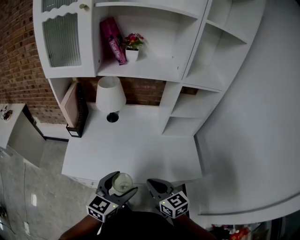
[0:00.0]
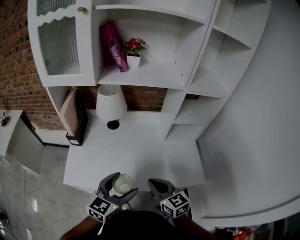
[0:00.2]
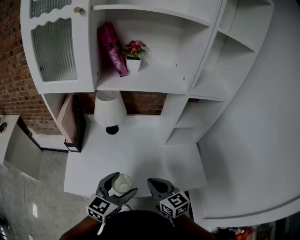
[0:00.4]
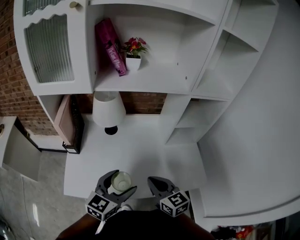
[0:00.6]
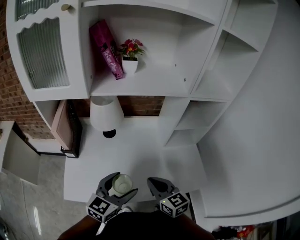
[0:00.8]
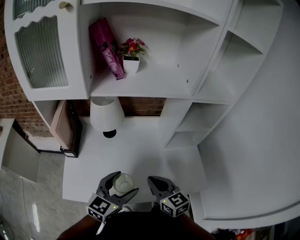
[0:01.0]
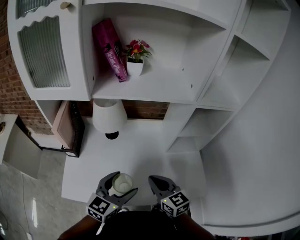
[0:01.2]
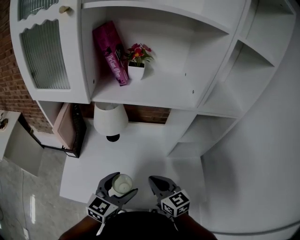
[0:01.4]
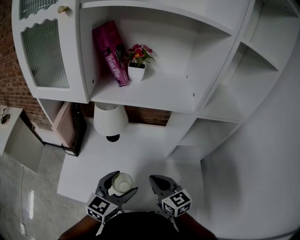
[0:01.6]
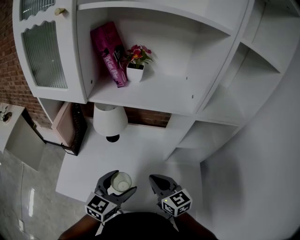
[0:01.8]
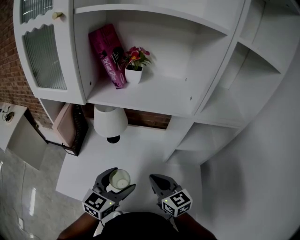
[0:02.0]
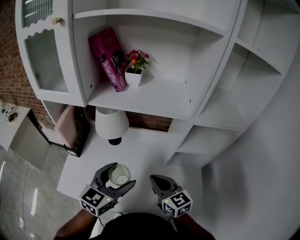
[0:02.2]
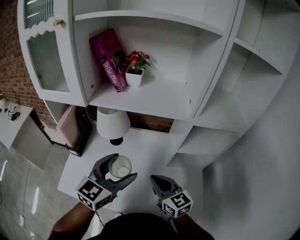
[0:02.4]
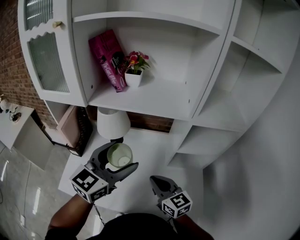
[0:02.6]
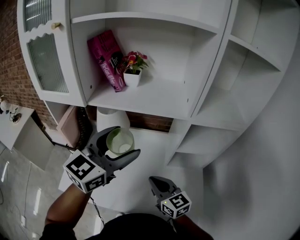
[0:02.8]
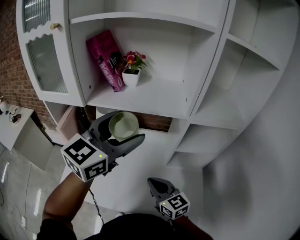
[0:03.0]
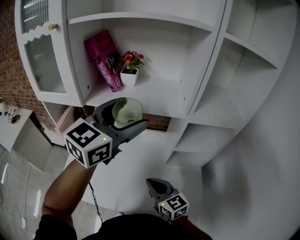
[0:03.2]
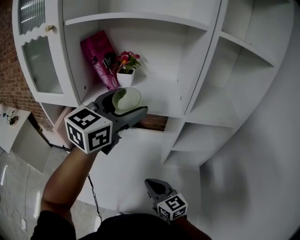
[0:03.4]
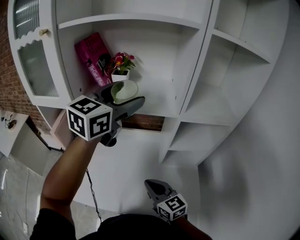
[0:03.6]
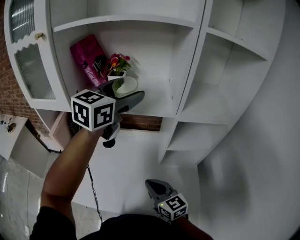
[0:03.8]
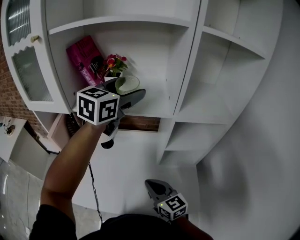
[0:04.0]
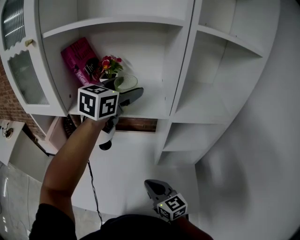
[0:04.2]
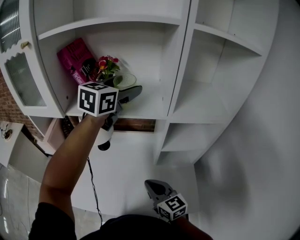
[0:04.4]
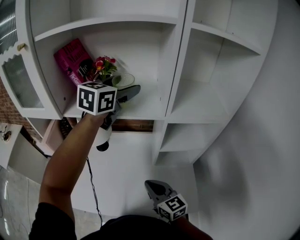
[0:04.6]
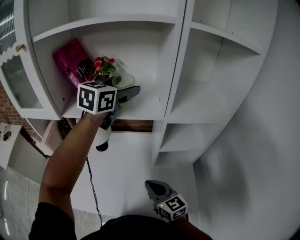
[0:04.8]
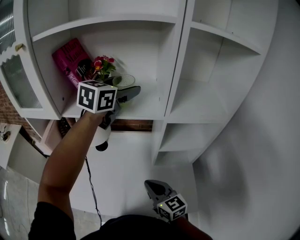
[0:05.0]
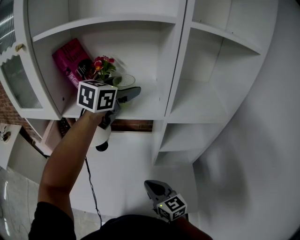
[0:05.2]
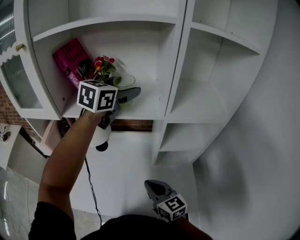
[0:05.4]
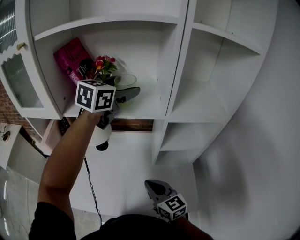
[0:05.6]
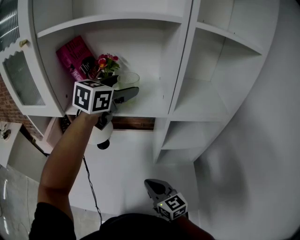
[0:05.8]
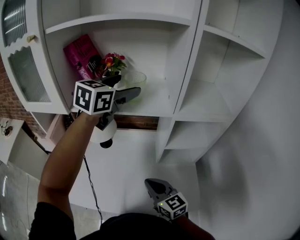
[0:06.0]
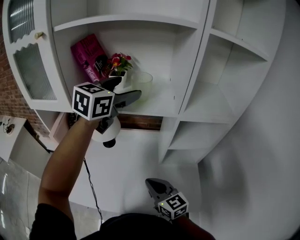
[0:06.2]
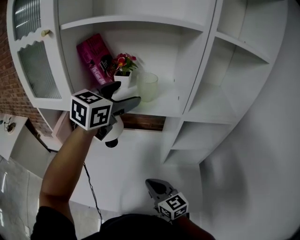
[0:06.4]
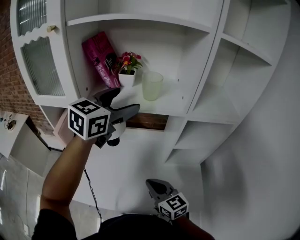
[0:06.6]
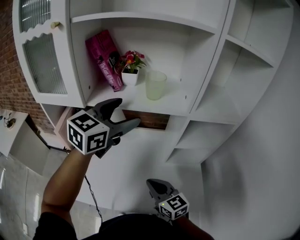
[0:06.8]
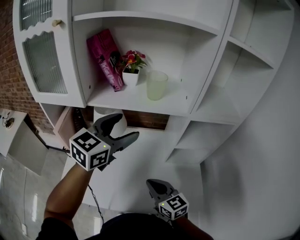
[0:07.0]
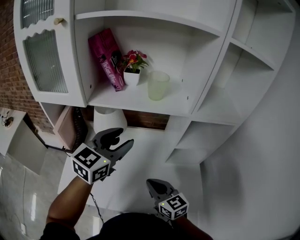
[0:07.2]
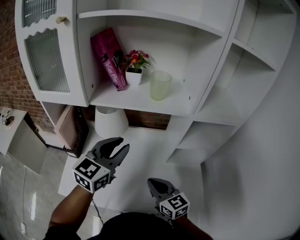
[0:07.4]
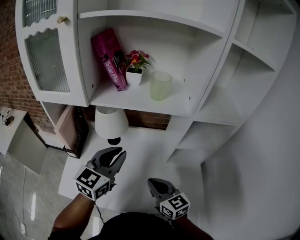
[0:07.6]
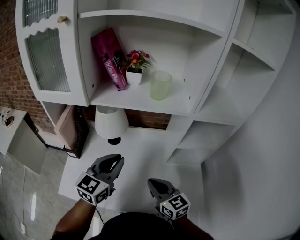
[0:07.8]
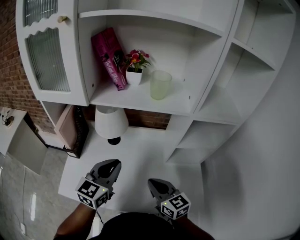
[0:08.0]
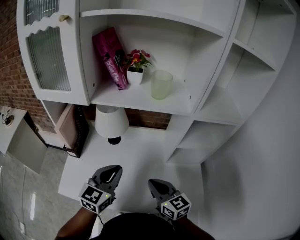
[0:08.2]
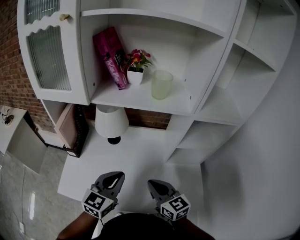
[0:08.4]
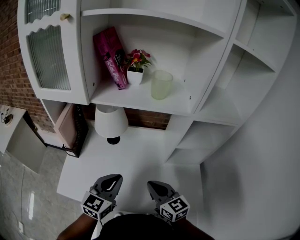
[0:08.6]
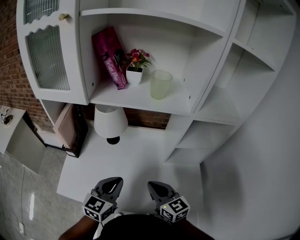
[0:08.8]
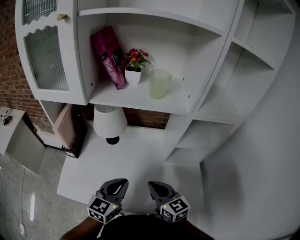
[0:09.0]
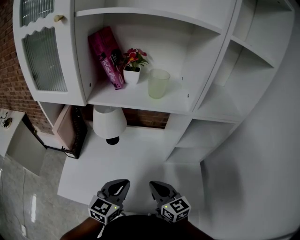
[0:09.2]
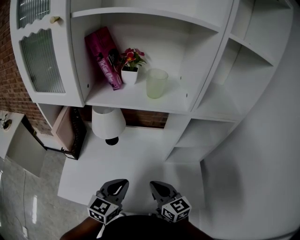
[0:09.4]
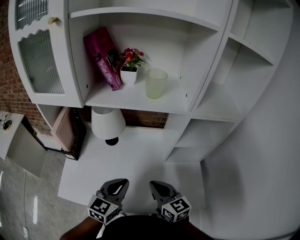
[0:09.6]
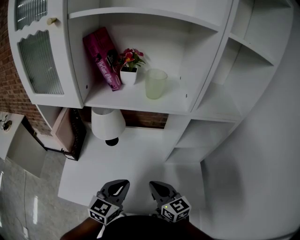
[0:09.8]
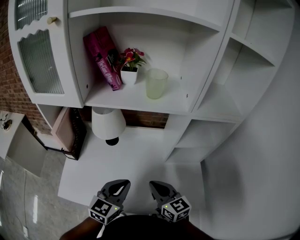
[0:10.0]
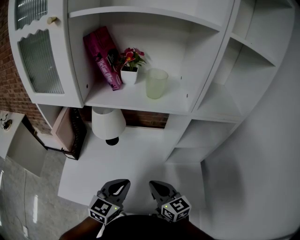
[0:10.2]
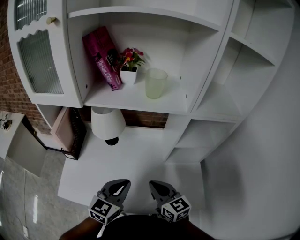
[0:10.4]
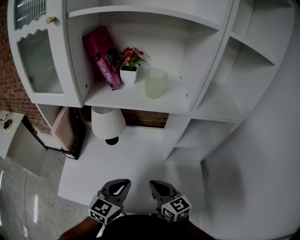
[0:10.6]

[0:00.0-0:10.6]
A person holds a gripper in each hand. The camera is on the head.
0:00.0 to 0:01.6: Both grippers travel together forward, approximately 20 cm.
0:01.6 to 0:03.0: The left gripper heads upward and forward, covering about 25 cm.
0:03.0 to 0:04.6: The left gripper shifts about 20 cm forward; the right gripper goes approximately 5 cm to the right.
0:04.6 to 0:06.0: The grippers move only a little.
0:06.0 to 0:07.6: The right gripper ends up roughly 5 cm from where it was, while the left gripper is displaced backward, downward and to the left by some 25 cm, and closes up.
0:07.6 to 0:09.0: The left gripper is displaced downward and backward by approximately 15 cm.
0:09.0 to 0:10.6: The grippers stay close to where they were, moving slightly.

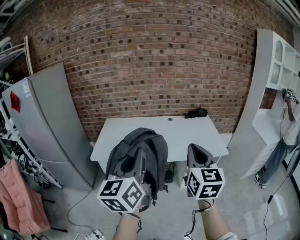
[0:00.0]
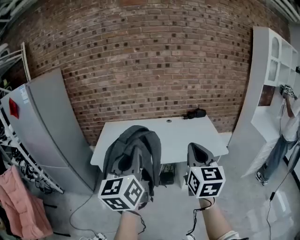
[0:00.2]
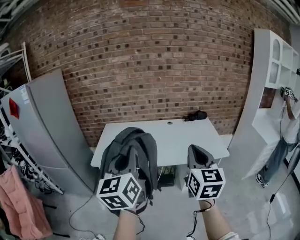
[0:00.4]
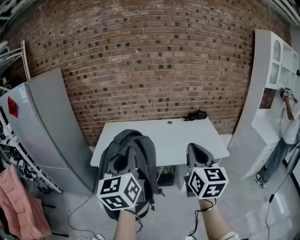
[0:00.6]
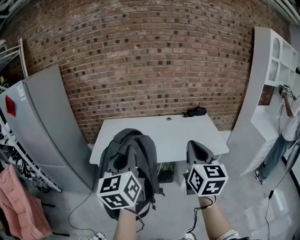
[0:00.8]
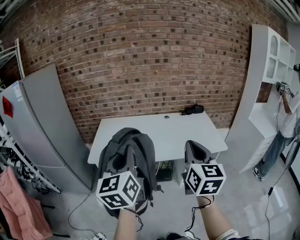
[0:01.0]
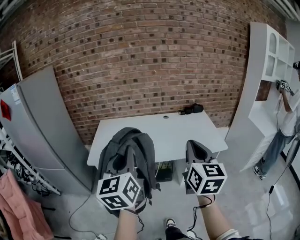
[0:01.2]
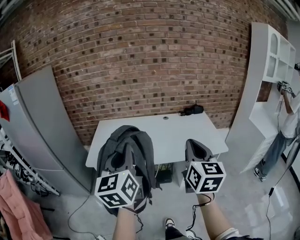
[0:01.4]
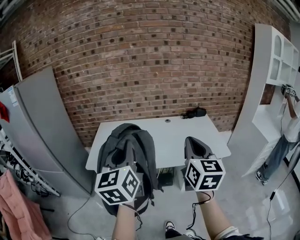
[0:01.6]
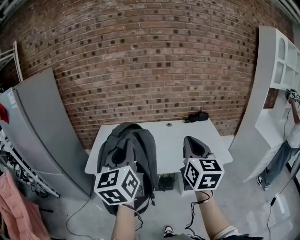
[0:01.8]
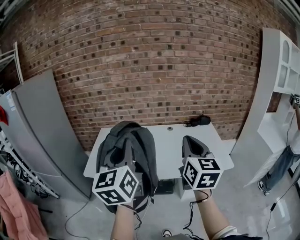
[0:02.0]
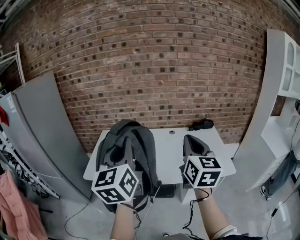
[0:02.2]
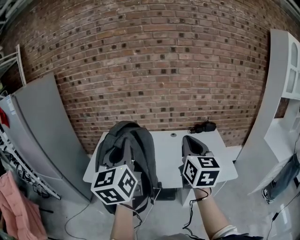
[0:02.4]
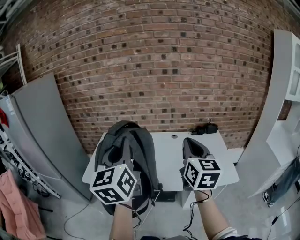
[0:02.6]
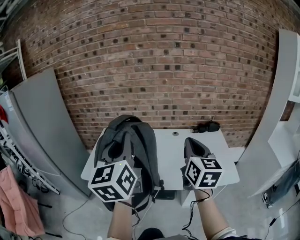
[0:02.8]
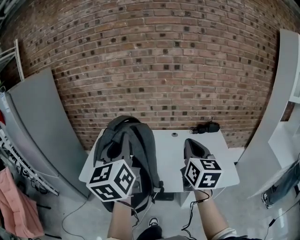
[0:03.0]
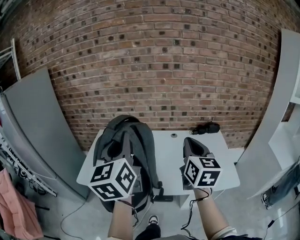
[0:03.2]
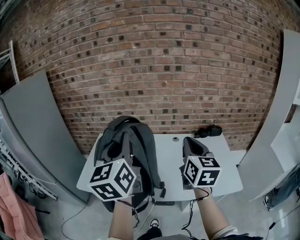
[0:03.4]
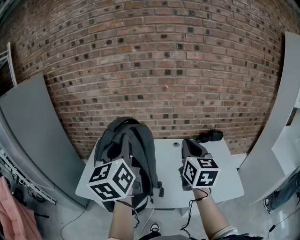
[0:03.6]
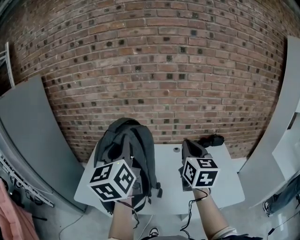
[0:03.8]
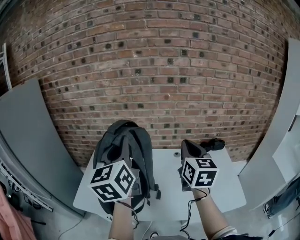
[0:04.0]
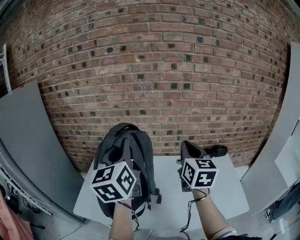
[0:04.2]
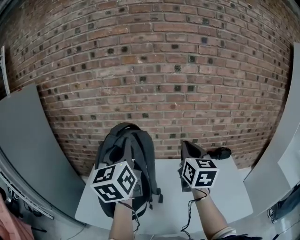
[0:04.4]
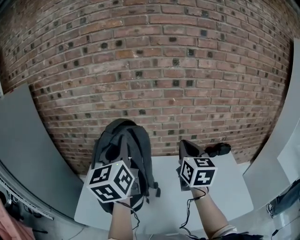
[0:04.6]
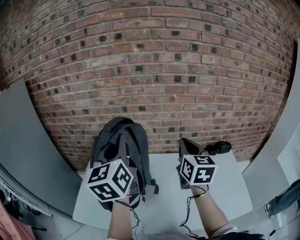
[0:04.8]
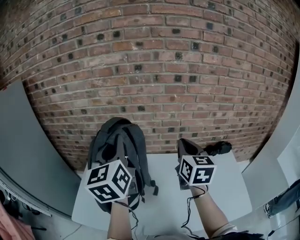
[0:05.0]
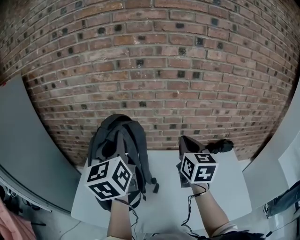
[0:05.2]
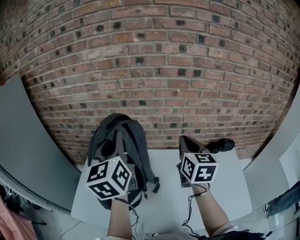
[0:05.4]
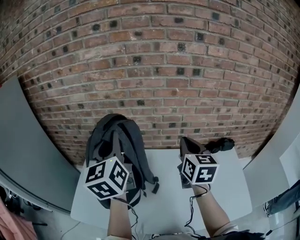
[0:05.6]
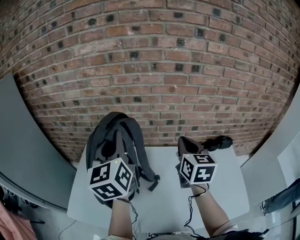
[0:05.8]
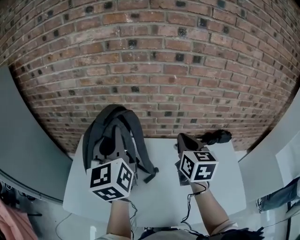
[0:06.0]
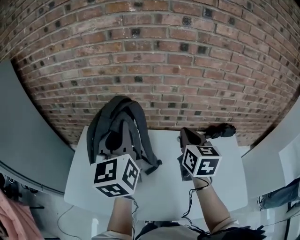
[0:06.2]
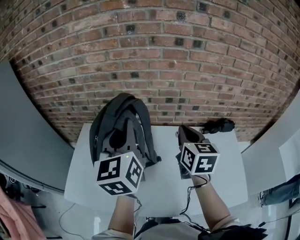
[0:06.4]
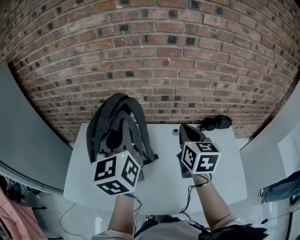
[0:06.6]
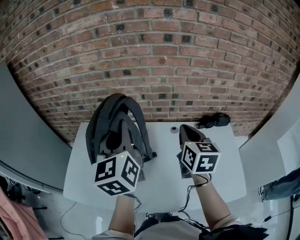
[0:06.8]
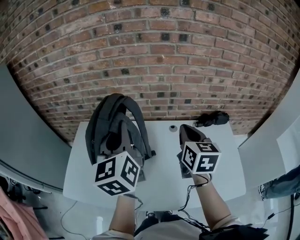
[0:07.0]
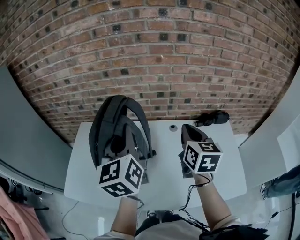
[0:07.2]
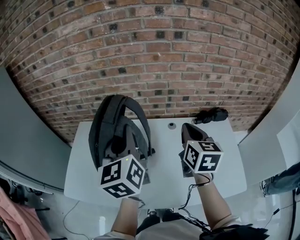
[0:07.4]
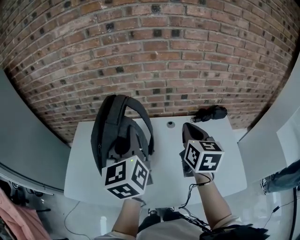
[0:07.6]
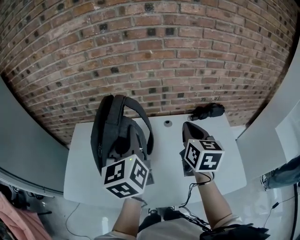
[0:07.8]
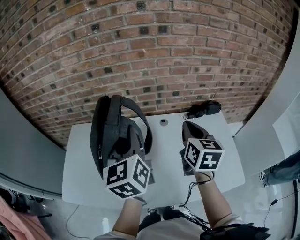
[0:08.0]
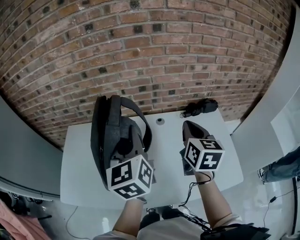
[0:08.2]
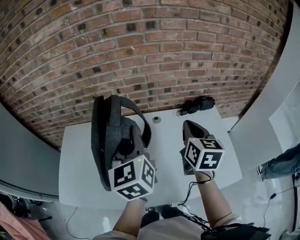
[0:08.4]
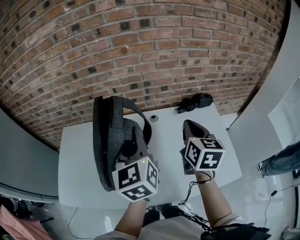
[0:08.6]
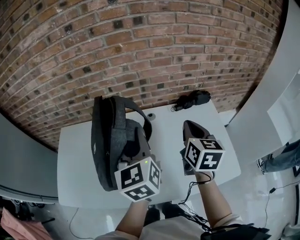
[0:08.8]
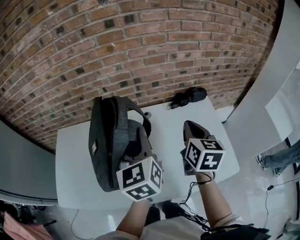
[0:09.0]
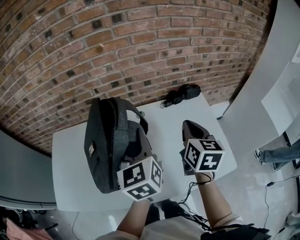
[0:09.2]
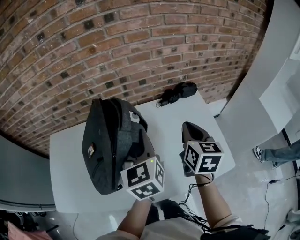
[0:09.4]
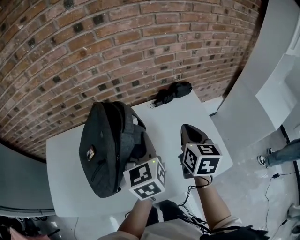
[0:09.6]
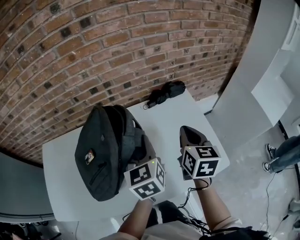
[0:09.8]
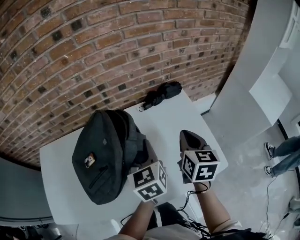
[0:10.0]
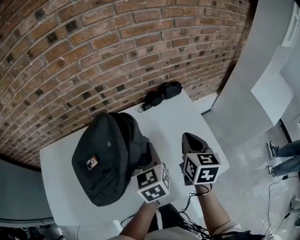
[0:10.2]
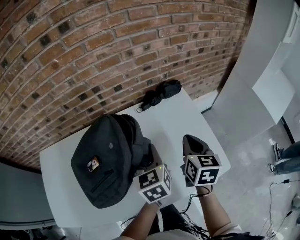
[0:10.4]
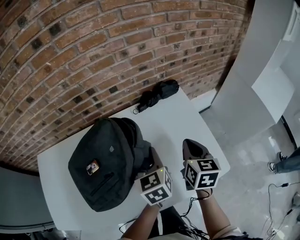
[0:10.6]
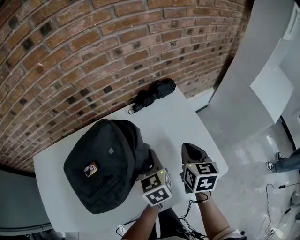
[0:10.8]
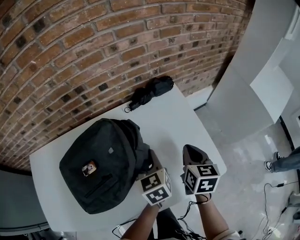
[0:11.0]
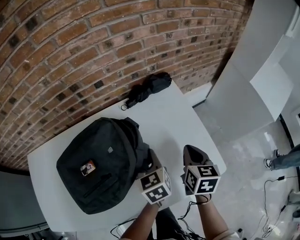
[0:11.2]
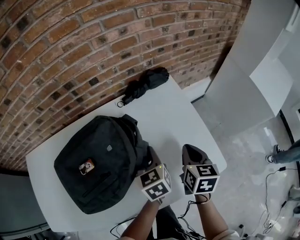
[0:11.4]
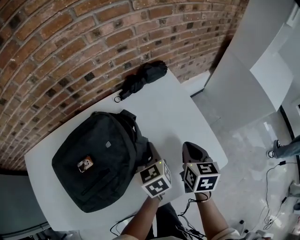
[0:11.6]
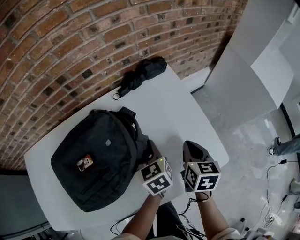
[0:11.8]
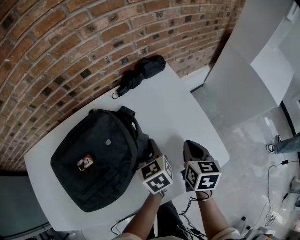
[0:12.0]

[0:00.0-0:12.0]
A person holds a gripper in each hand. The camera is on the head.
0:00.0 to 0:01.6: The grippers both shift forward by approximately 10 cm.
0:01.6 to 0:03.0: Both grippers move forward, some 20 cm.
0:03.0 to 0:04.4: The two grippers go about 25 cm forward.
0:04.4 to 0:06.0: The right gripper goes some 15 cm downward and forward, while the left gripper goes roughly 10 cm forward and downward.
0:06.0 to 0:07.6: The left gripper goes about 15 cm to the right, backward and downward; the right gripper is displaced to the right and backward by some 10 cm.
0:07.6 to 0:09.0: The right gripper heads to the right, covering roughly 15 cm, while the left gripper goes some 15 cm to the right and downward.
0:09.0 to 0:10.4: Both grippers move to the right and downward, approximately 20 cm.
0:10.4 to 0:12.0: The two grippers go approximately 15 cm downward and to the right.

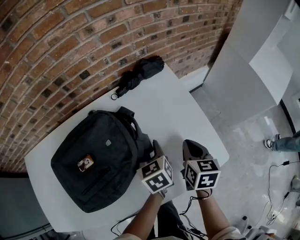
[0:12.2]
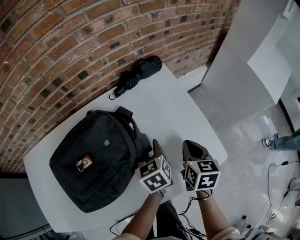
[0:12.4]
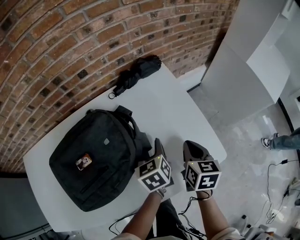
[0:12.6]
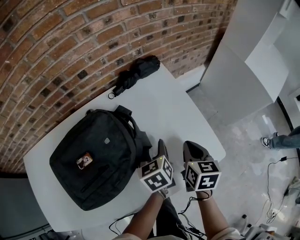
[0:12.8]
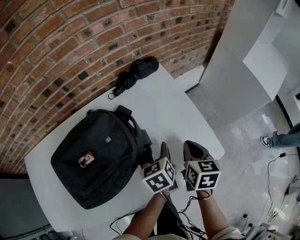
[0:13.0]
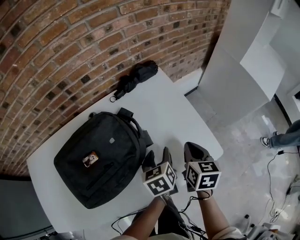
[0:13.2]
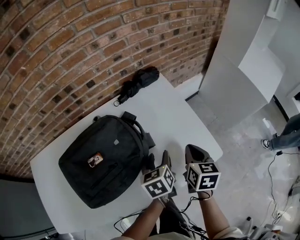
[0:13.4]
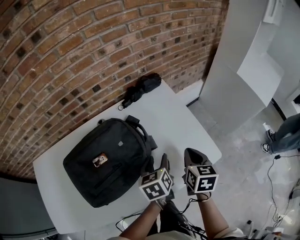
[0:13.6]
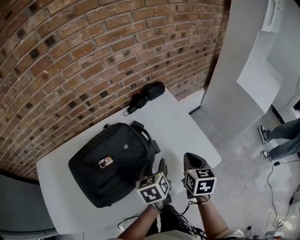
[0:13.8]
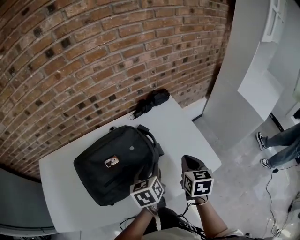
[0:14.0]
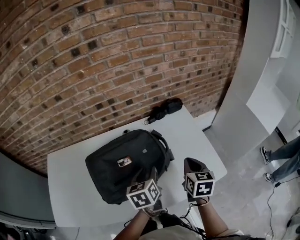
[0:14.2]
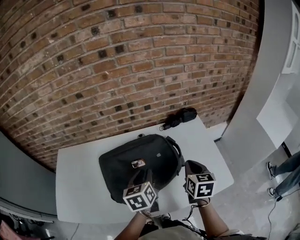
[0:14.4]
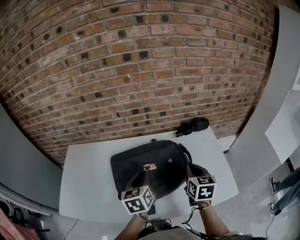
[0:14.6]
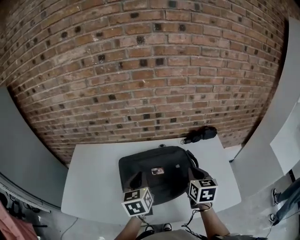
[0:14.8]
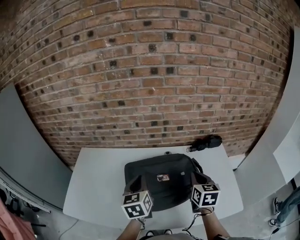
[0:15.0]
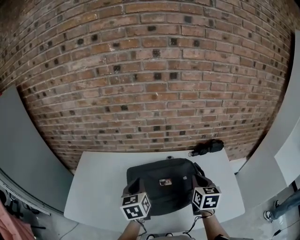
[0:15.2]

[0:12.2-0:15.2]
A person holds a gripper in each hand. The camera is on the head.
0:12.2 to 0:13.8: The right gripper goes some 10 cm upward and backward. Meanwhile the left gripper heads backward and upward, covering about 10 cm, and opens its fingers.
0:13.8 to 0:15.2: The left gripper changes place by about 40 cm, changes its angle by some 30 degrees, and closes up. The right gripper changes place by roughly 25 cm, and changes its angle by about 30 degrees.
